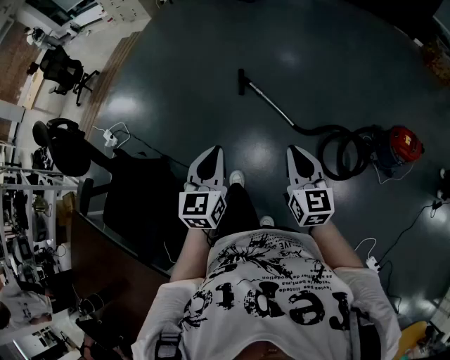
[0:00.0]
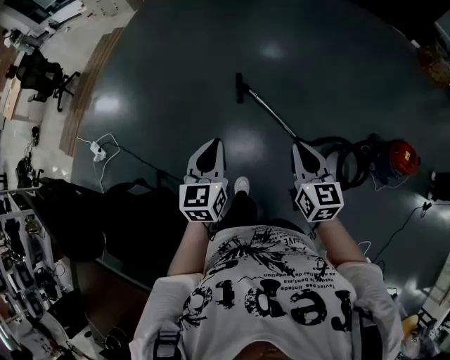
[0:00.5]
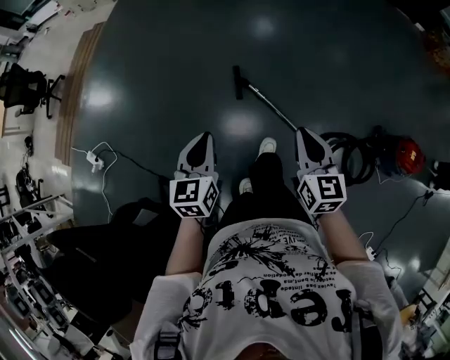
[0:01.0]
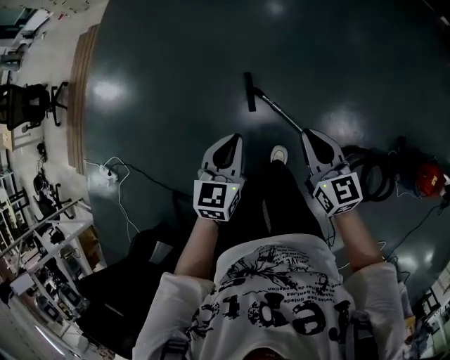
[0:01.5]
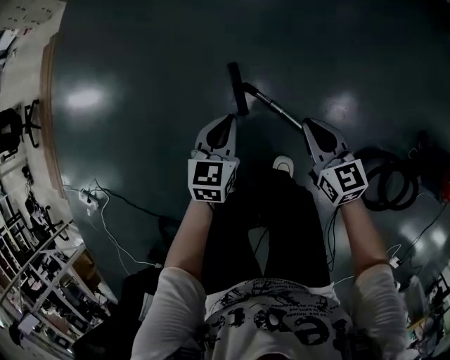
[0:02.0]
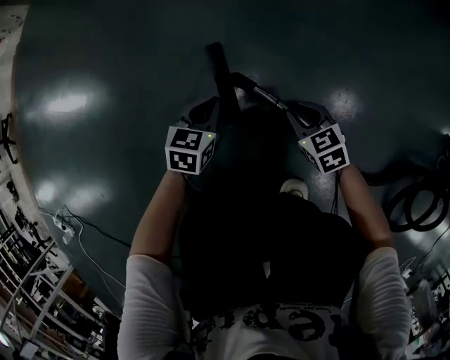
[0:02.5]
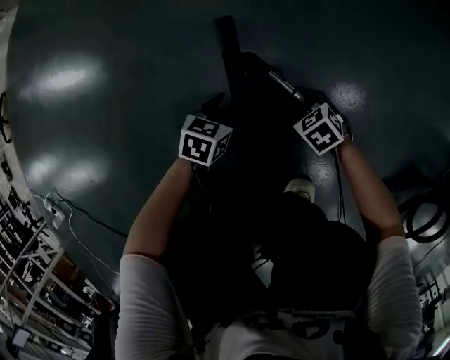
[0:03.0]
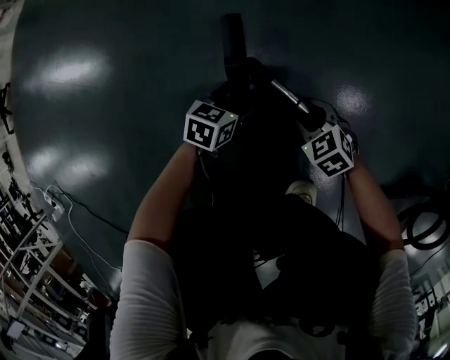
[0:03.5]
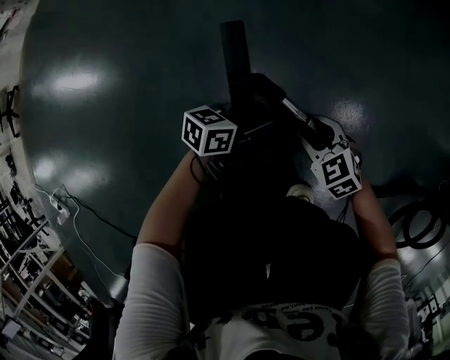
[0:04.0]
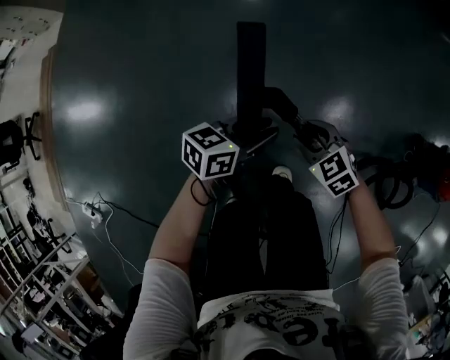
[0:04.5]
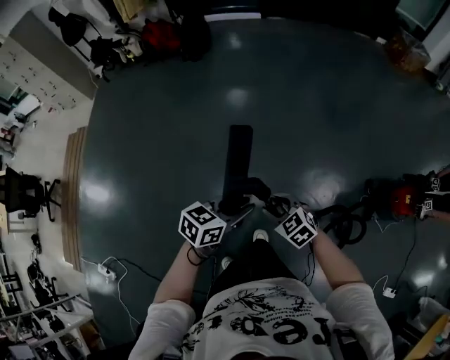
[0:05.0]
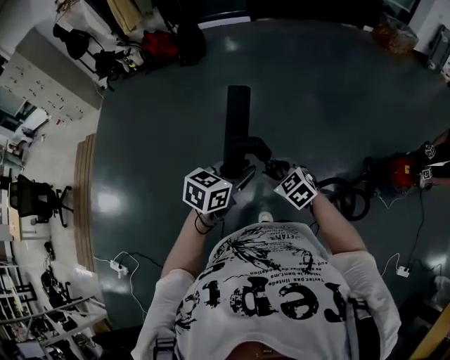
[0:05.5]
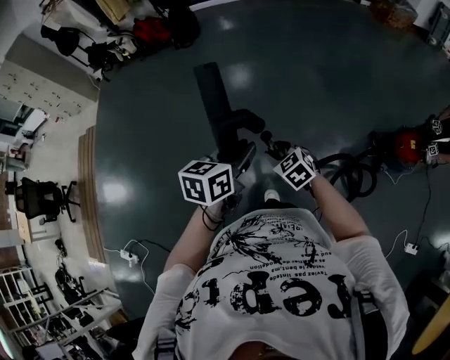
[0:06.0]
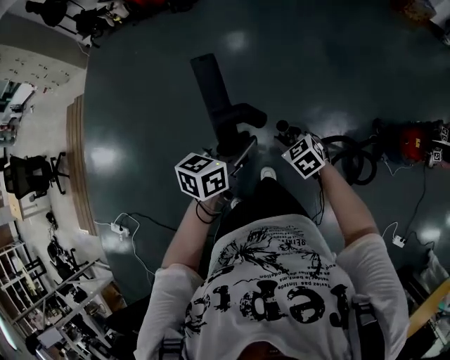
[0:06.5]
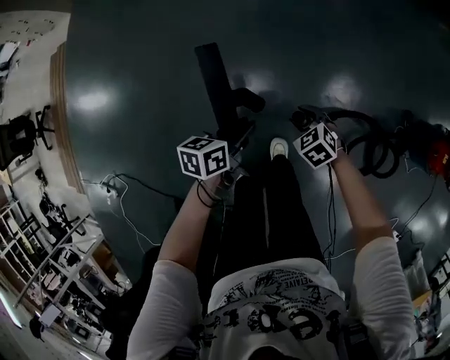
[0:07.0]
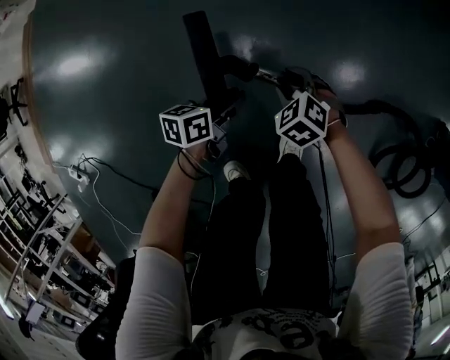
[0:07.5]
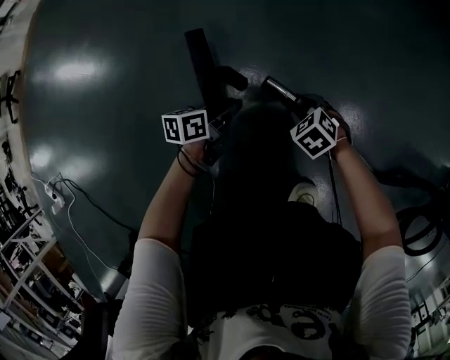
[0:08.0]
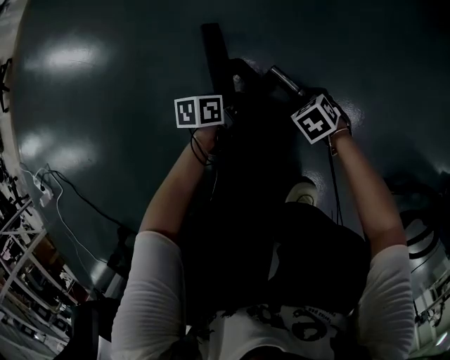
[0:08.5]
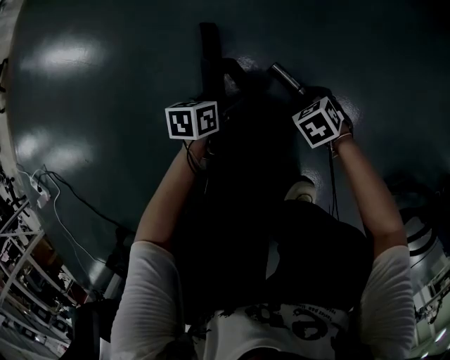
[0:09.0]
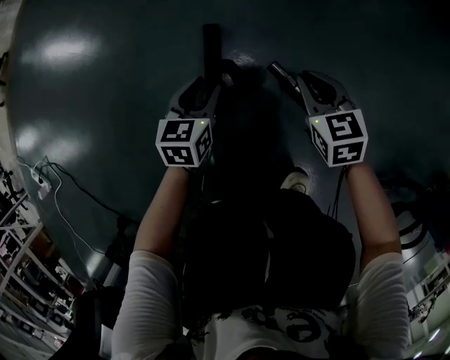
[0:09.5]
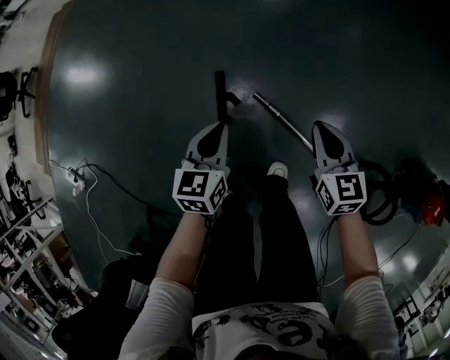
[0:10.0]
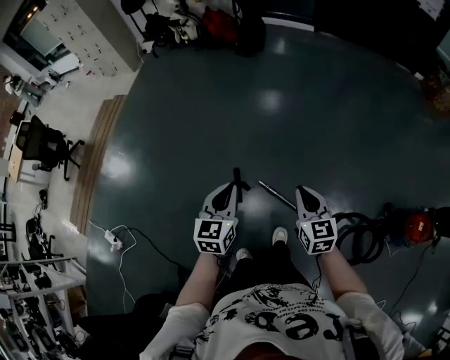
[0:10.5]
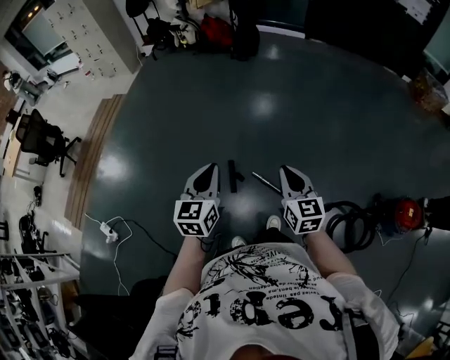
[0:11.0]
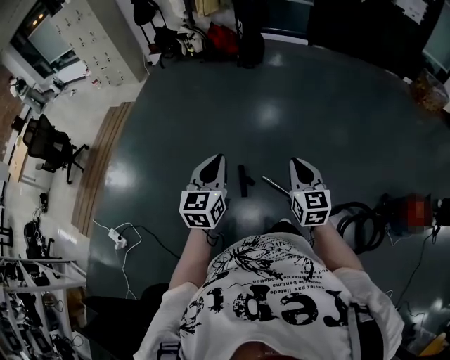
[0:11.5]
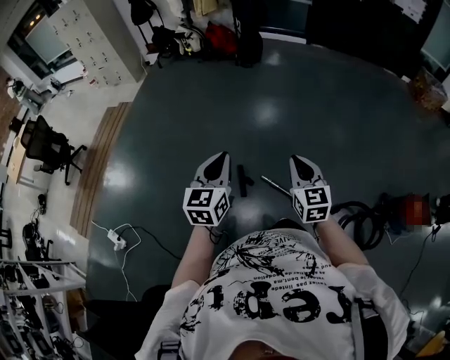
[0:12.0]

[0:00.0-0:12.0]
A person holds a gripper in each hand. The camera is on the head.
0:00.0 to 0:02.0: The two grippers travel together, forward, about 70 cm. The grippers both shift downward by some 50 cm. The left gripper changes its angle by approximately 30 degrees.
0:02.0 to 0:04.0: The grippers both shift downward by approximately 40 cm. The right gripper turns by roughly 40 degrees, and opens; the left gripper turns by some 50 degrees, and opens up.
0:04.0 to 0:06.0: The two grippers go some 80 cm upward. The left gripper rotates some 20 degrees.
0:06.0 to 0:08.0: Both grippers travel together downward, some 90 cm. The left gripper swivels about 40 degrees, while the right gripper turns by approximately 30 degrees.
0:08.0 to 0:10.0: The two grippers go roughly 50 cm upward. The right gripper tilts its fingers about 40 degrees upward, and closes up. The left gripper rotates roughly 40 degrees, and opens, then closes again.
0:10.0 to 0:12.0: The right gripper heads upward and backward, covering about 50 cm, while the left gripper shifts roughly 50 cm upward, and changes its angle by about 20 degrees.

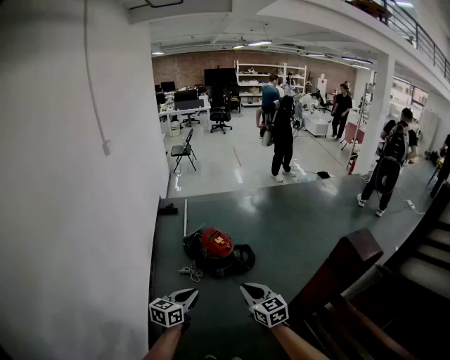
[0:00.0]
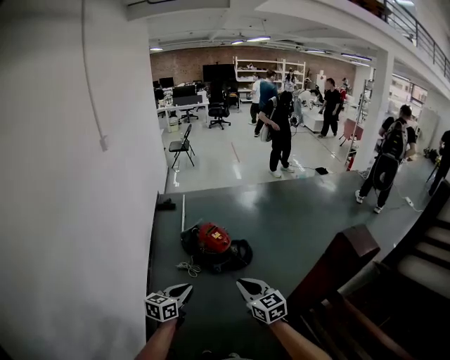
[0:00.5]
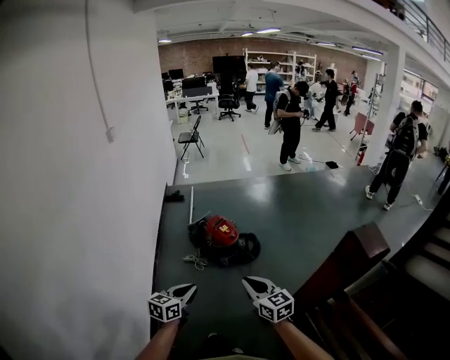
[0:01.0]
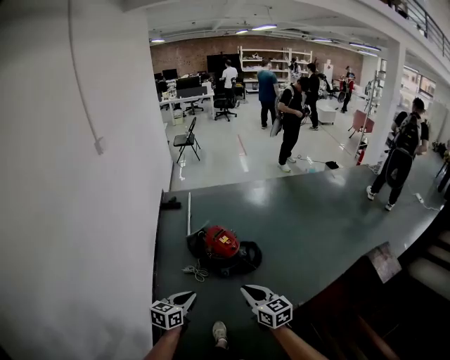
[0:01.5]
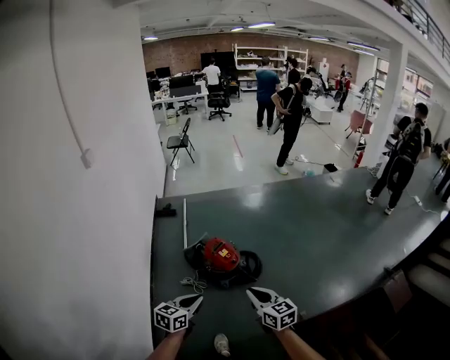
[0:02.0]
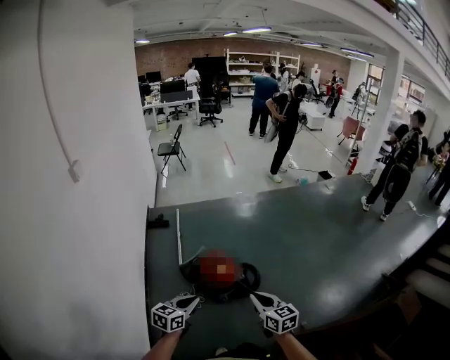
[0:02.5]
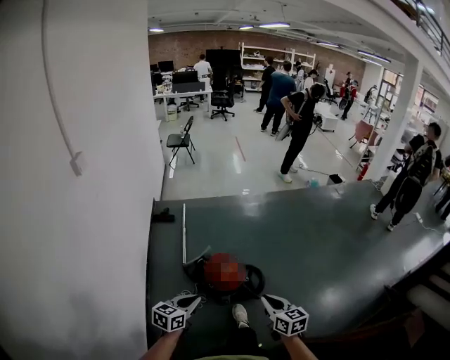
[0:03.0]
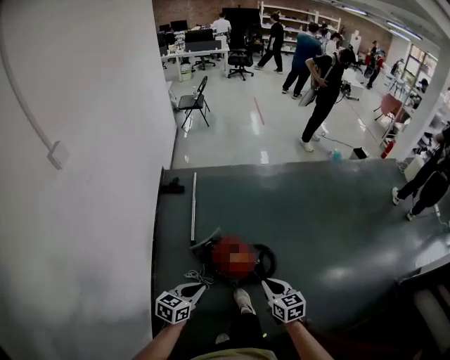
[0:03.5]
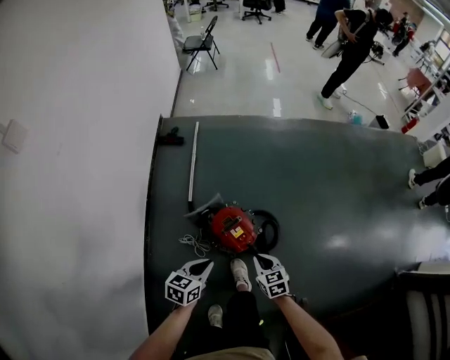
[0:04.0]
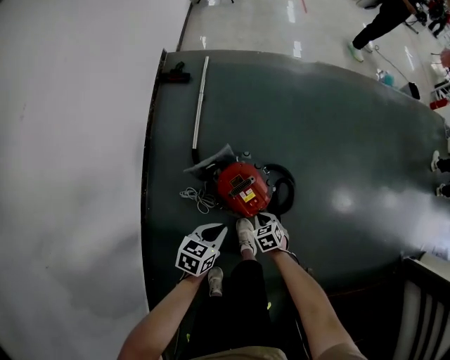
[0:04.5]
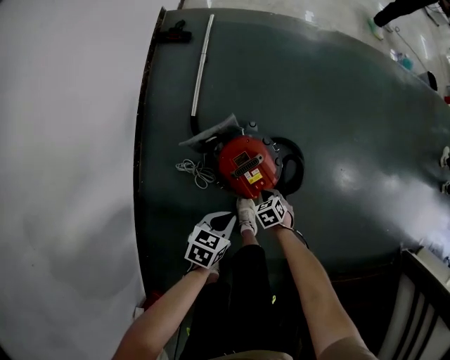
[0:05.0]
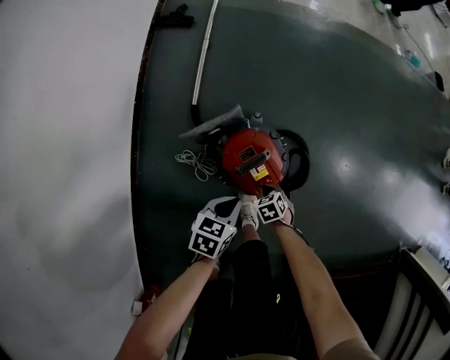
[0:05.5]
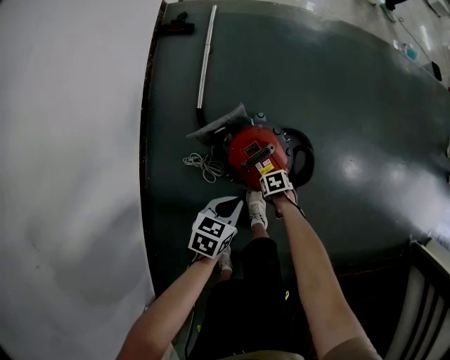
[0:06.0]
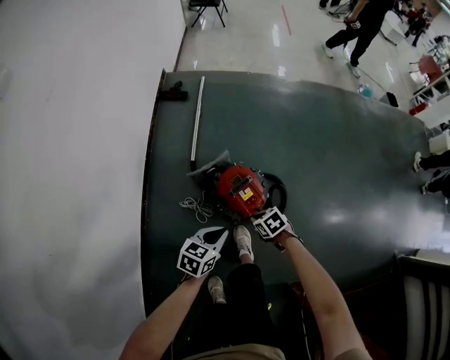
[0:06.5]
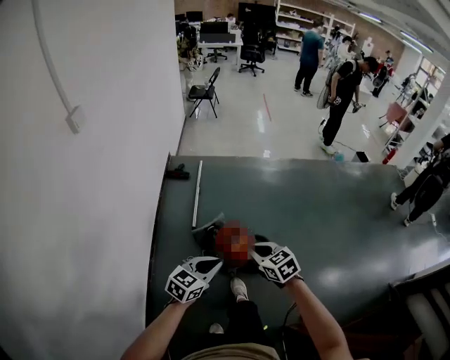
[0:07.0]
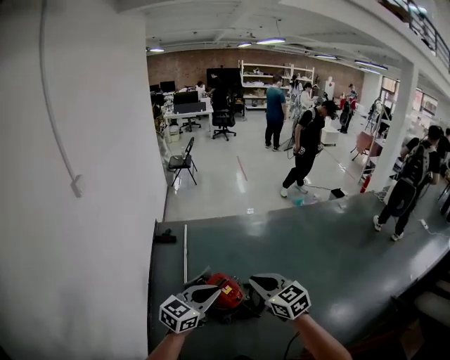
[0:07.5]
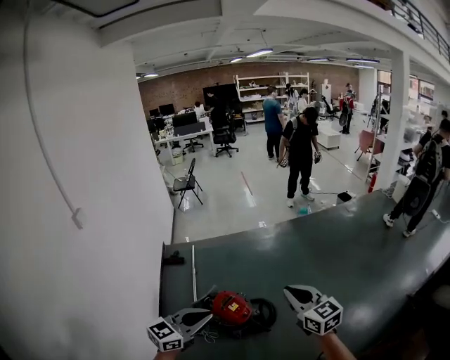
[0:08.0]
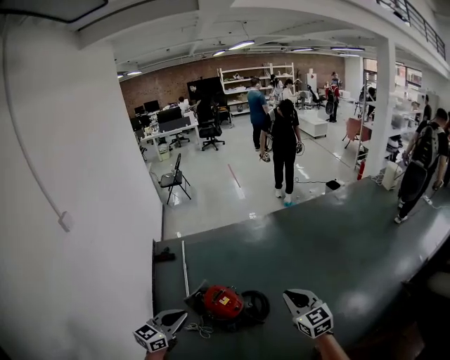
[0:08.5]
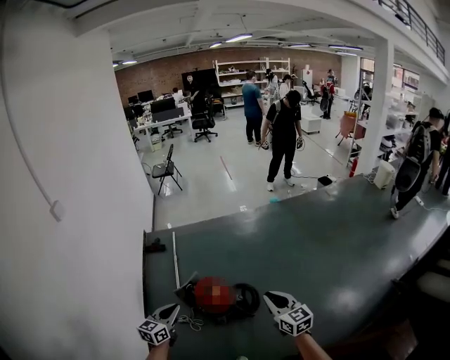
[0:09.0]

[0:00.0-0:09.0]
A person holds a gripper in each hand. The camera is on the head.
0:00.0 to 0:02.0: The two grippers go approximately 25 cm forward.
0:02.0 to 0:04.5: The pair of grippers is taken forward, approximately 50 cm. The right gripper moves downward, some 60 cm, and angles its fingers downward, by about 50 degrees. The left gripper is displaced downward by roughly 40 cm, and turns by roughly 20 degrees.
0:04.5 to 0:07.0: The grippers both shift upward by approximately 40 cm. The right gripper swivels approximately 30 degrees. The left gripper rotates roughly 30 degrees.
0:07.0 to 0:09.0: The left gripper shifts roughly 10 cm to the right and backward, and moves about 20 cm upward and comes back. The right gripper is displaced to the right by roughly 30 cm, and swivels approximately 40 degrees.

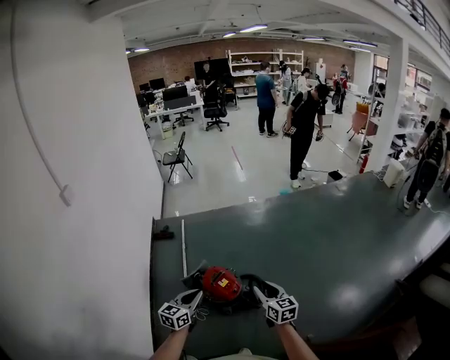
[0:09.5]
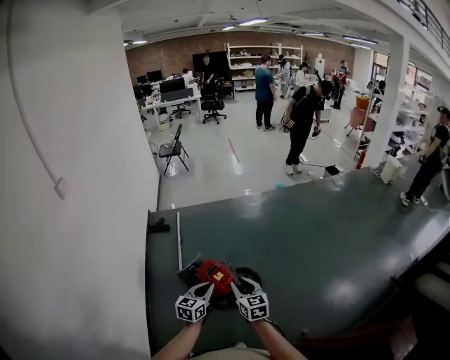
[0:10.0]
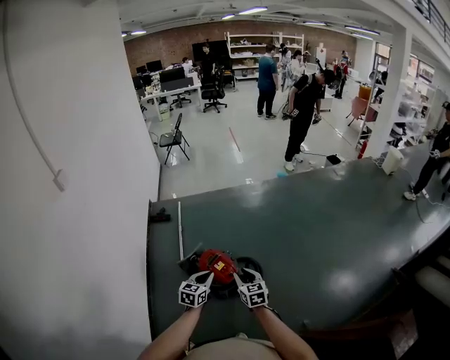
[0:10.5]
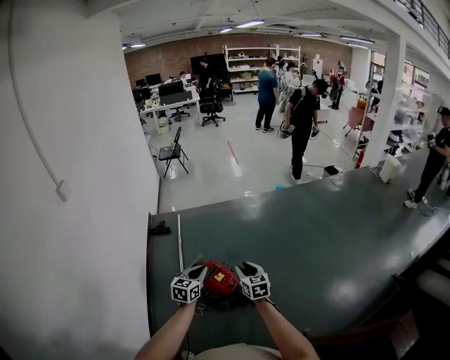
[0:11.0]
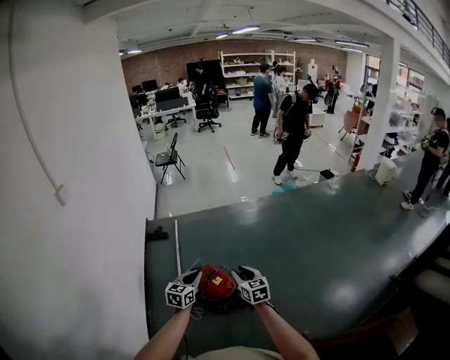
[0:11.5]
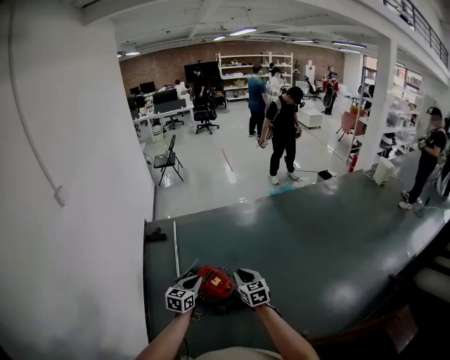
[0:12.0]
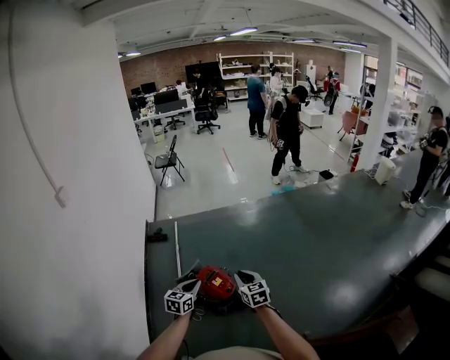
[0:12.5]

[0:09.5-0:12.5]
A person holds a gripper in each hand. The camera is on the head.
0:09.5 to 0:11.0: The left gripper shifts about 10 cm forward. Meanwhile the right gripper travels forward and to the left by about 10 cm, and goes downward and returns, approximately 10 cm each way.
0:11.0 to 0:12.5: The left gripper shifts by some 5 cm.

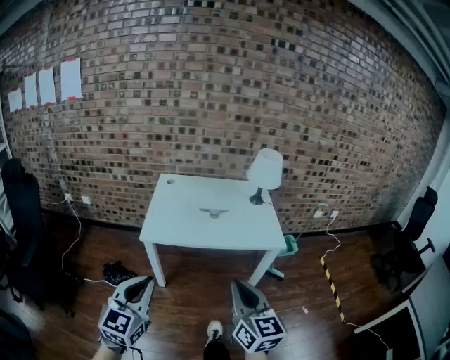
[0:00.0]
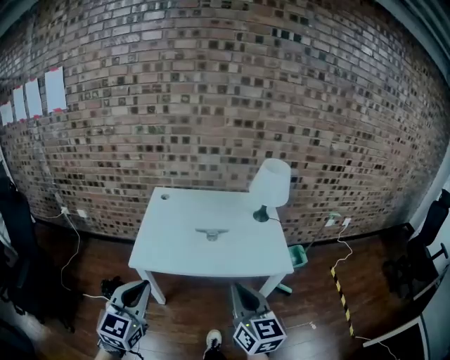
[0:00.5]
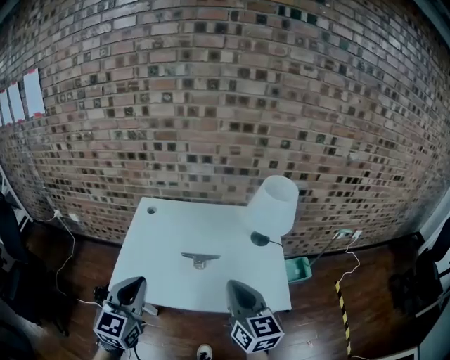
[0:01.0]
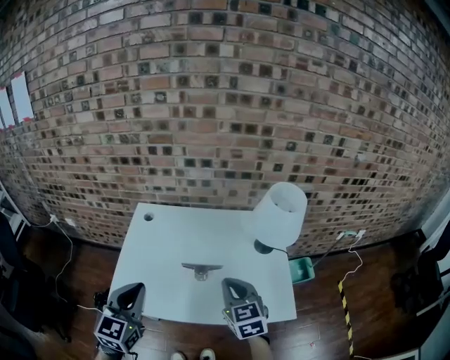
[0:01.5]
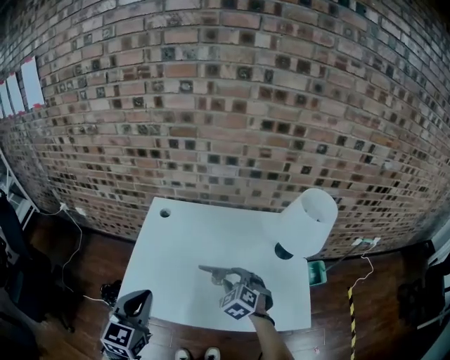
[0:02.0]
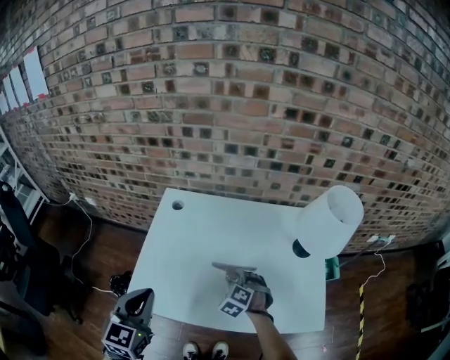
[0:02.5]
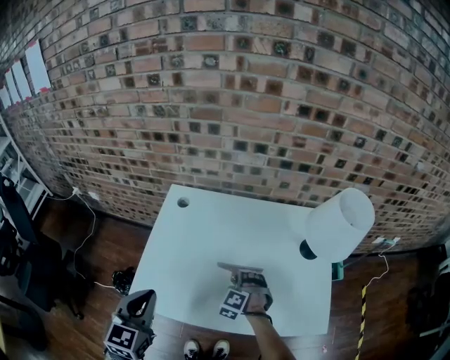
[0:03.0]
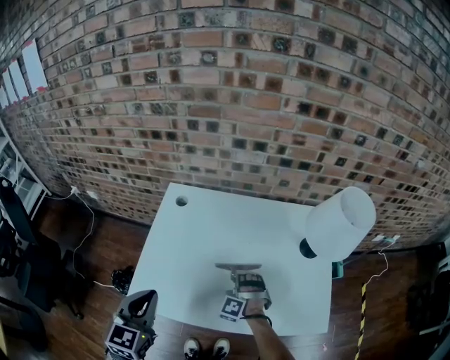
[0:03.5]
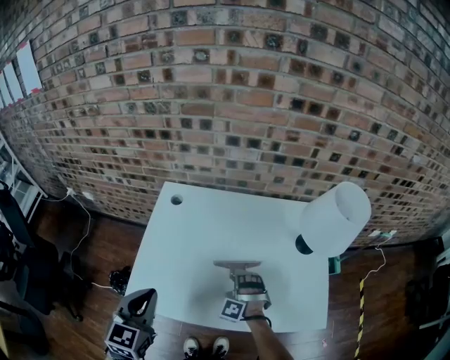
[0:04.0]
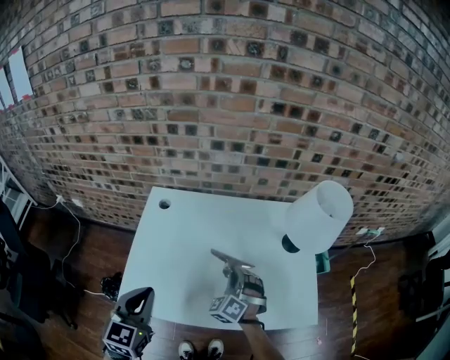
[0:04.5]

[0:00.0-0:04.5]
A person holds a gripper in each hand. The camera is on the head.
0:00.0 to 0:02.0: Both grippers are carried forward, some 50 cm. The right gripper moves downward, about 25 cm, tilts its fingers some 50 degrees downward, and opens its fingers.
0:02.0 to 0:04.5: The right gripper travels downward and back again, approximately 10 cm each way, swivels roughly 30 degrees, and closes.
